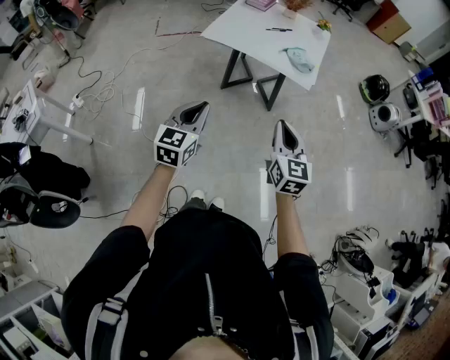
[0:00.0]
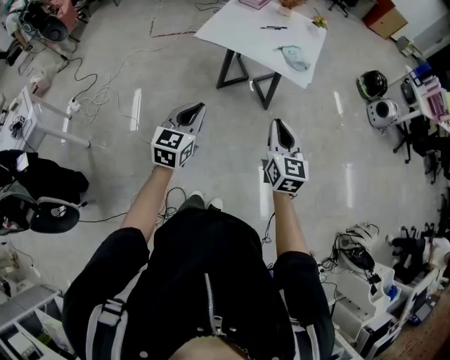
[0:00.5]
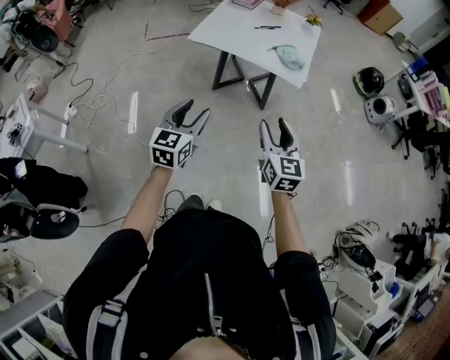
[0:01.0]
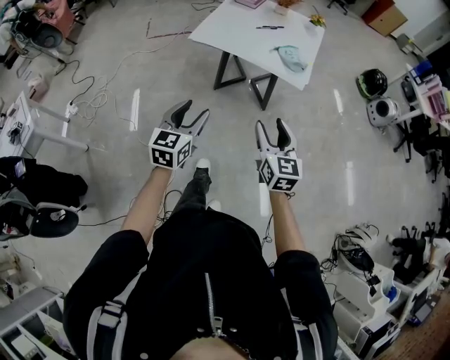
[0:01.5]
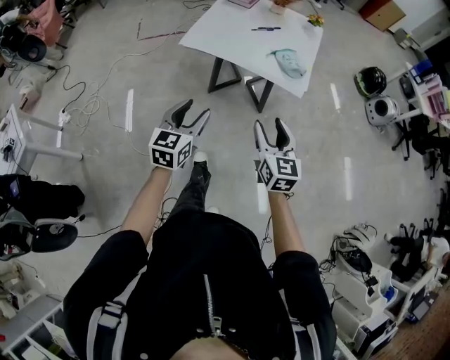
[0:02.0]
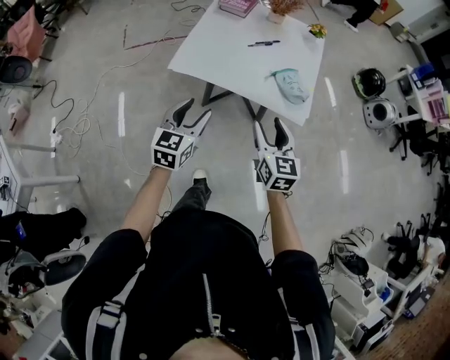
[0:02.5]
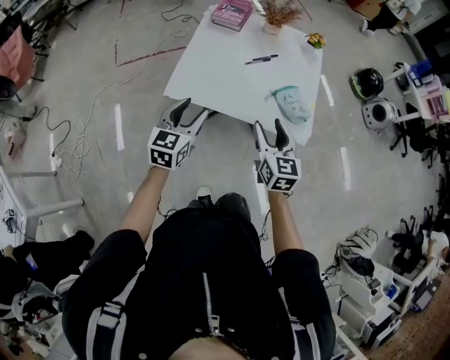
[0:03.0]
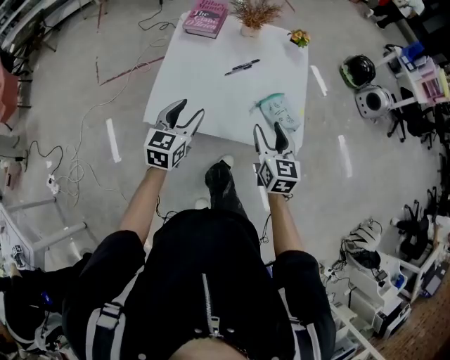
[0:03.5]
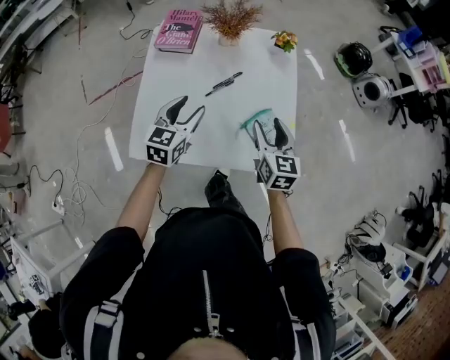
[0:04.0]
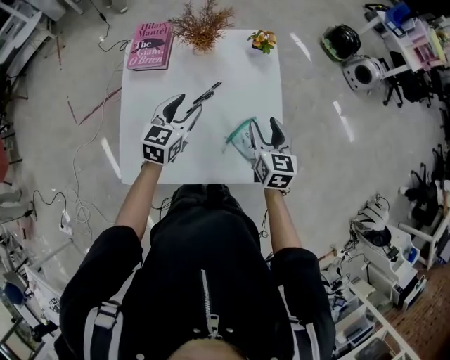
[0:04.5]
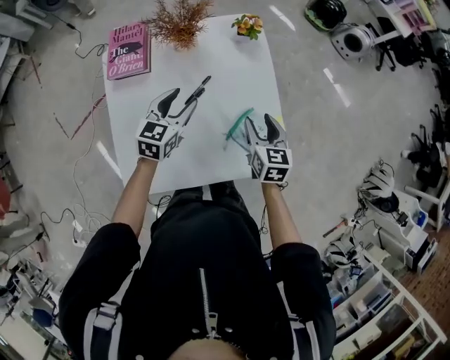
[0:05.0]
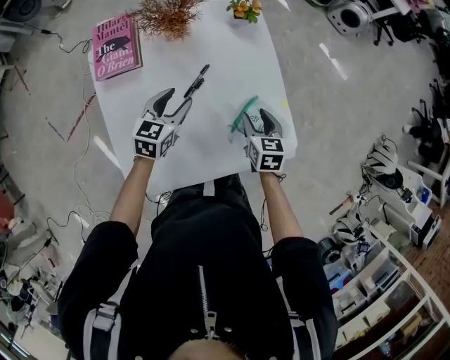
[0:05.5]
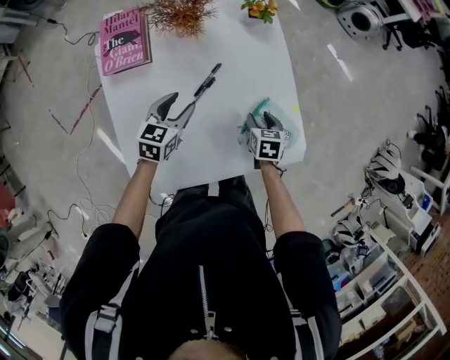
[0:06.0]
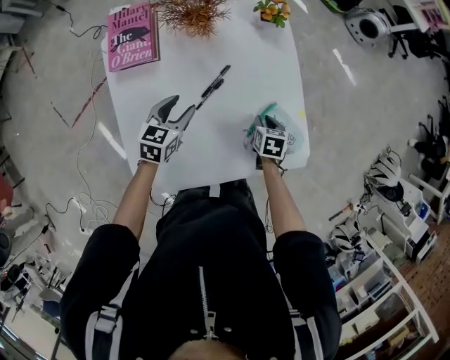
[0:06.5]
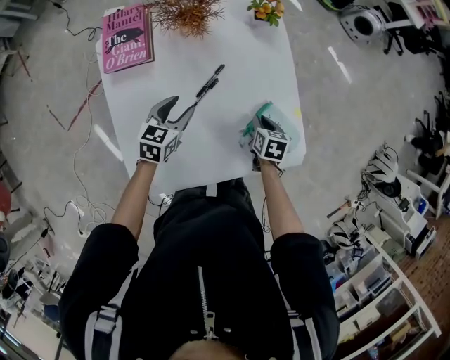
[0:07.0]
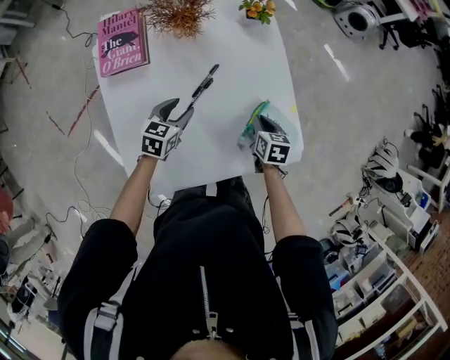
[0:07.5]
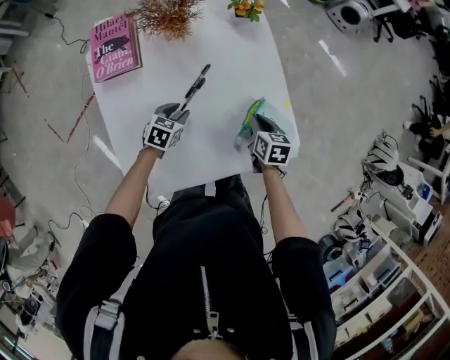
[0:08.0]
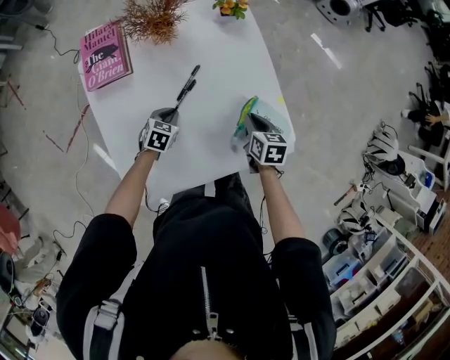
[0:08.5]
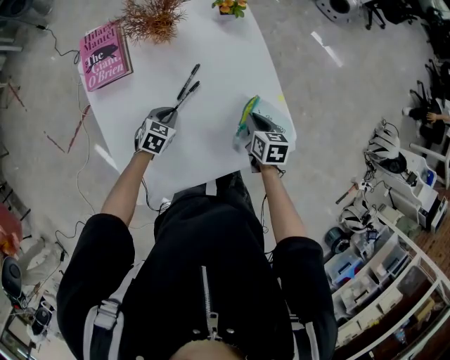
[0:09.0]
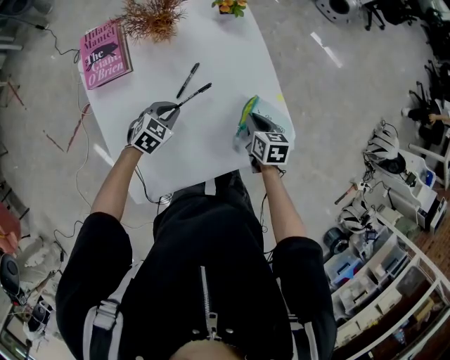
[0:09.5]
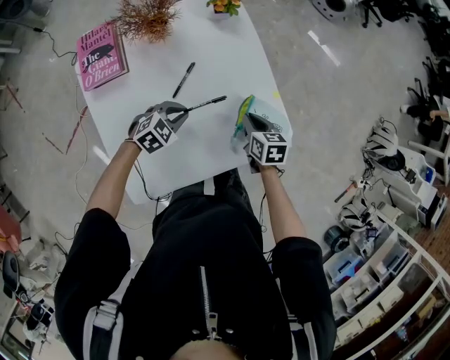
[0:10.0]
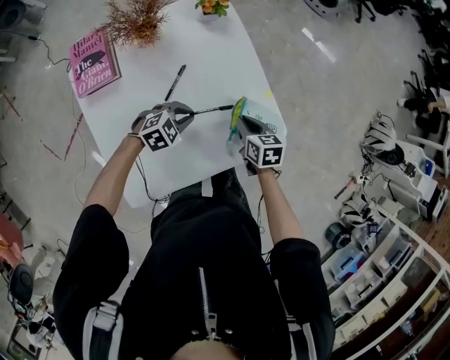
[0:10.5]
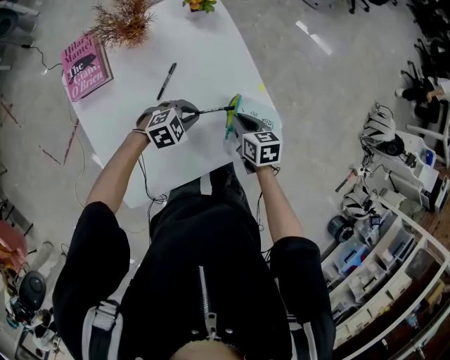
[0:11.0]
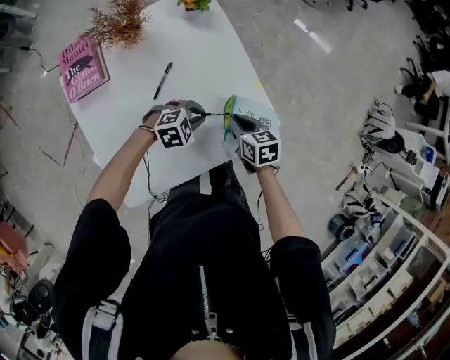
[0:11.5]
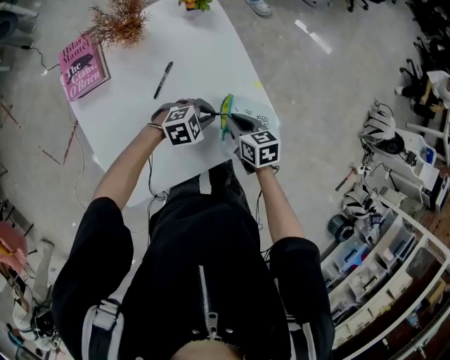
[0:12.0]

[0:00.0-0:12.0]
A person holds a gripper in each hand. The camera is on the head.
0:00.0 to 0:02.0: The grippers both shift forward by about 10 cm. The left gripper opens up, while the right gripper opens its fingers.
0:02.0 to 0:04.0: The pair of grippers is taken forward, about 50 cm. The left gripper rotates about 20 degrees. Meanwhile the right gripper changes its angle by about 20 degrees.
0:04.0 to 0:06.0: The right gripper heads downward, covering about 20 cm, and angles its fingers downward, by about 30 degrees. The left gripper shifts roughly 20 cm forward and downward, and rotates roughly 30 degrees.
0:06.0 to 0:08.0: The right gripper closes; the left gripper goes approximately 10 cm downward, and swivels approximately 20 degrees.
0:08.0 to 0:10.0: The left gripper travels to the right and upward by roughly 10 cm, rotates approximately 40 degrees, and closes.
0:10.0 to 0:12.0: The left gripper travels to the right by approximately 15 cm, and changes its angle by some 20 degrees.

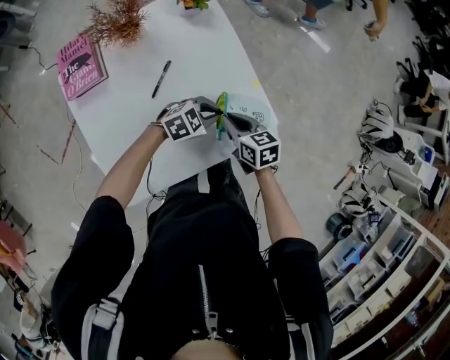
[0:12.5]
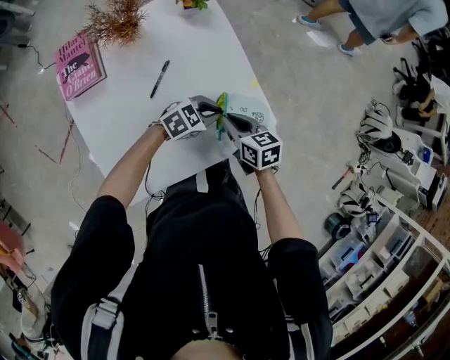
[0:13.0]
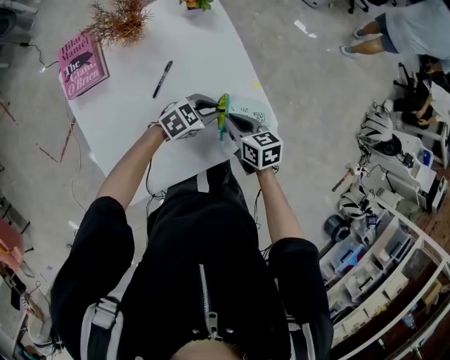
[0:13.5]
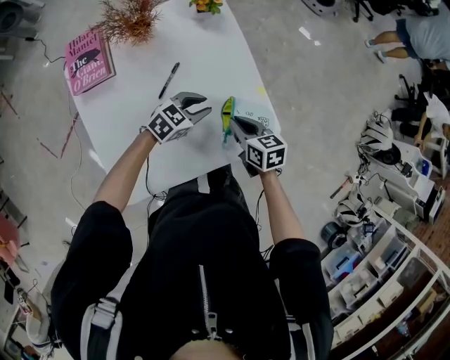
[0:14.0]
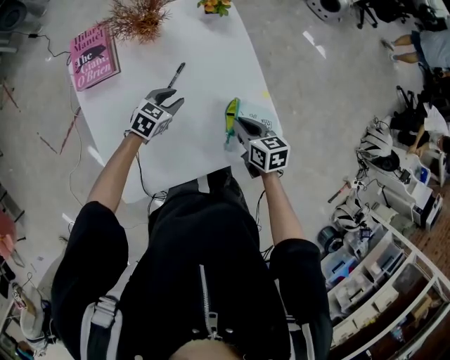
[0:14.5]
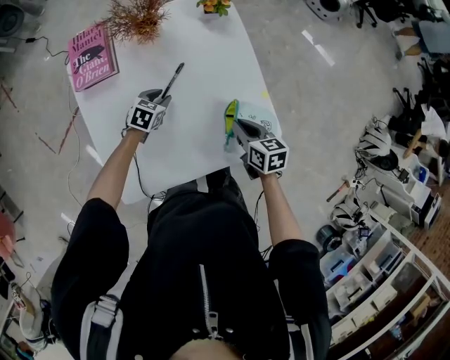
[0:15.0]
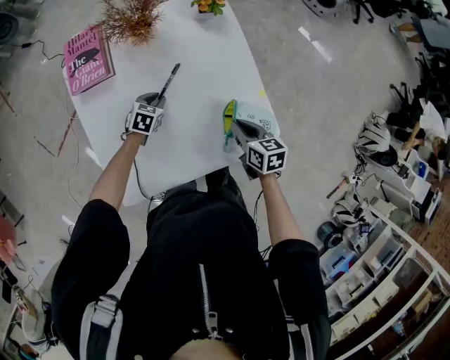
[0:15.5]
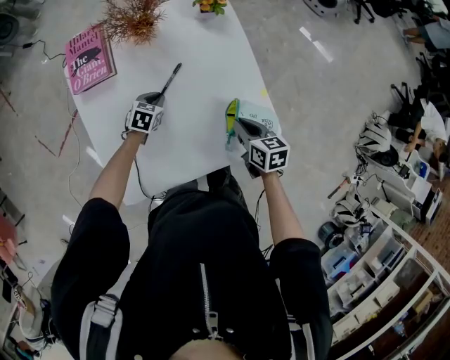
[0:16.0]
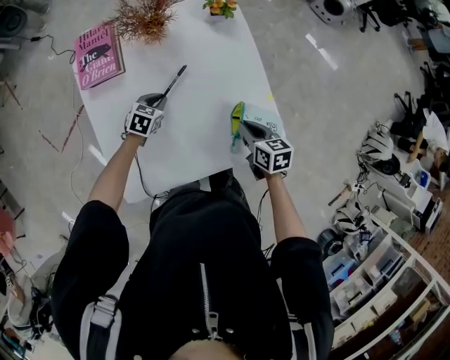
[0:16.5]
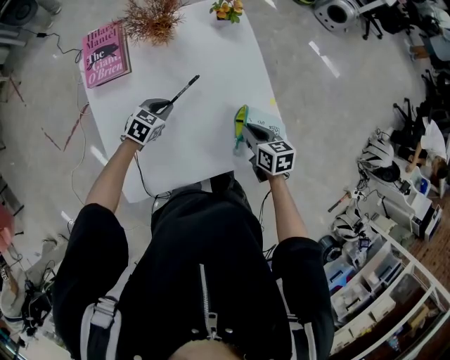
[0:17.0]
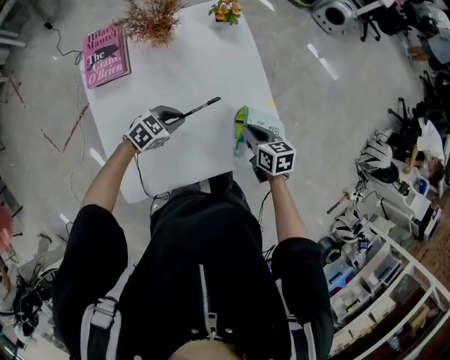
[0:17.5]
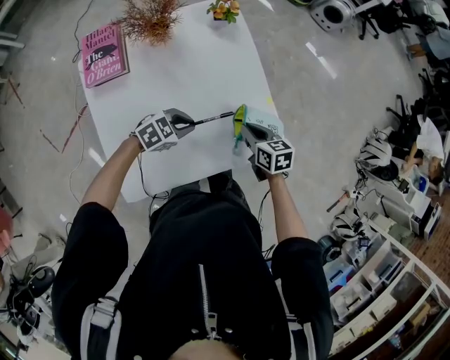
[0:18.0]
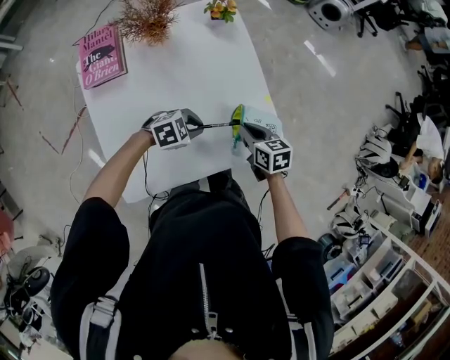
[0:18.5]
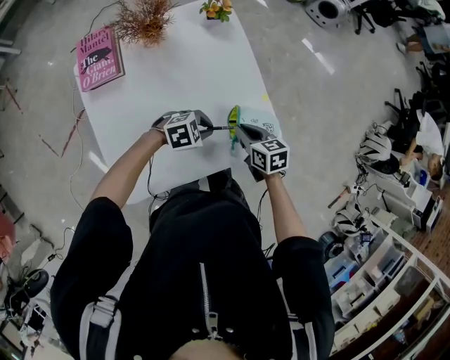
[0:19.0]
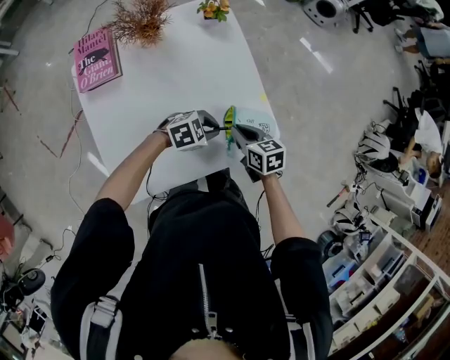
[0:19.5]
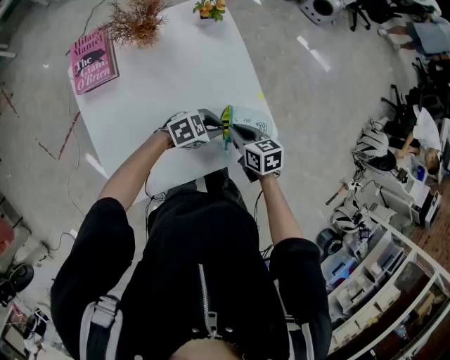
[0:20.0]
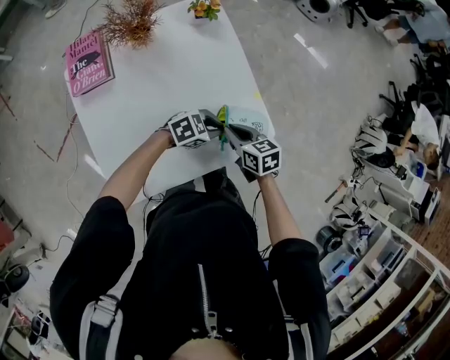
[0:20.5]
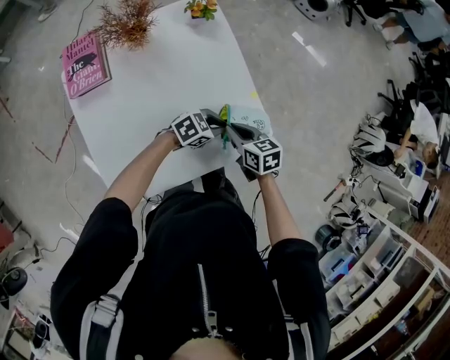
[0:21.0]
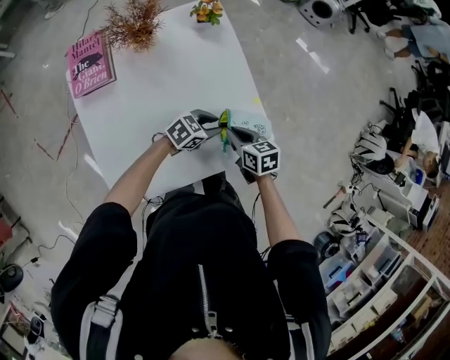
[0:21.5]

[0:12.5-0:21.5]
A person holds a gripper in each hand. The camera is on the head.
0:12.5 to 0:14.5: The left gripper is displaced to the left by about 20 cm, changes its angle by roughly 40 degrees, and opens up.
0:14.5 to 0:17.0: The left gripper goes roughly 5 cm to the left.
0:17.0 to 0:19.5: The left gripper ends up about 20 cm from where it was, and changes its angle by some 40 degrees.
0:19.5 to 0:21.5: The left gripper changes its angle by some 20 degrees.

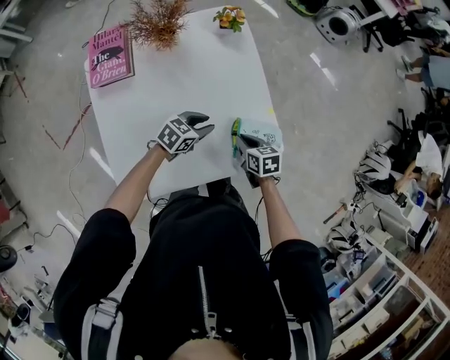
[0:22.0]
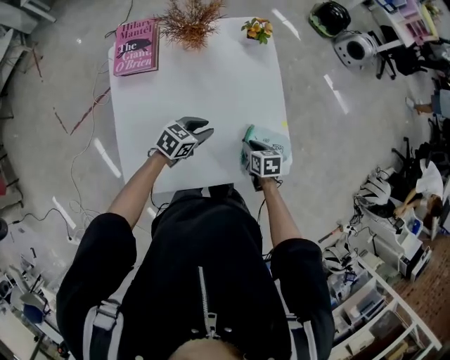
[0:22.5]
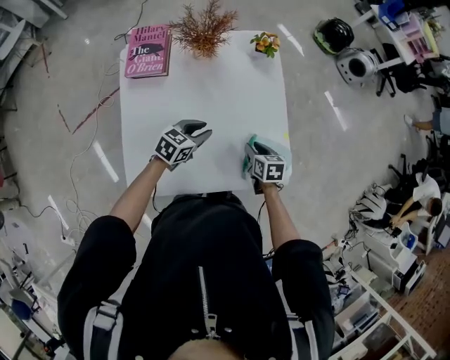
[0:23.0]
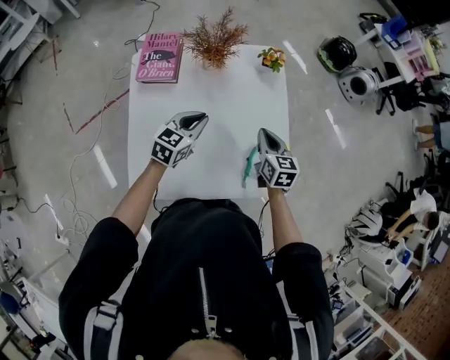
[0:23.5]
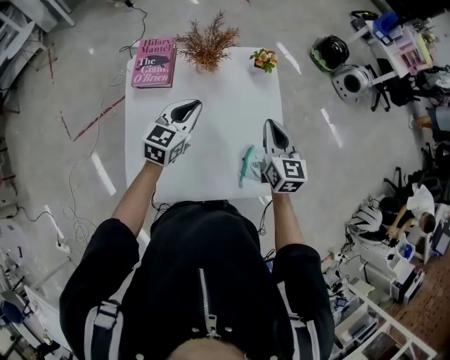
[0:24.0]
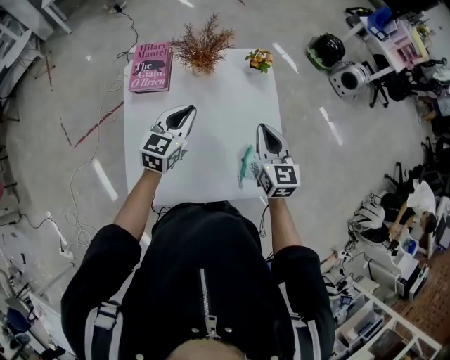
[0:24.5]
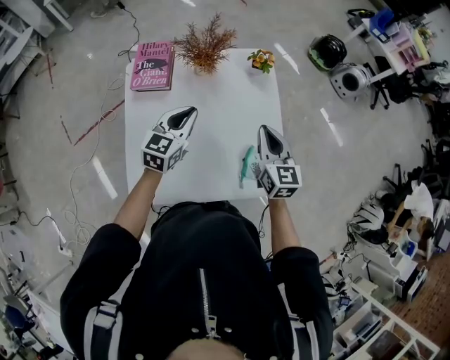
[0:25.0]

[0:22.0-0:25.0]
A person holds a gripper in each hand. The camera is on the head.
0:22.0 to 0:23.5: The right gripper goes roughly 15 cm upward, forward and to the left, turns by roughly 30 degrees, and opens, then closes again. The left gripper heads to the left and upward, covering approximately 20 cm, and turns by about 40 degrees.
0:23.5 to 0:25.0: Both grippers move upward, approximately 10 cm.

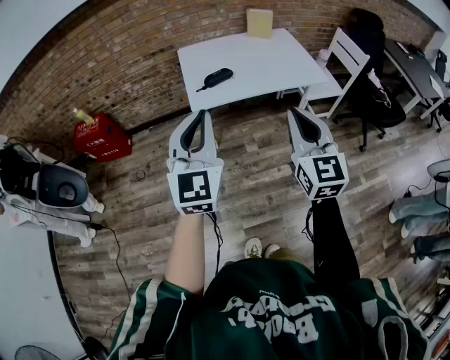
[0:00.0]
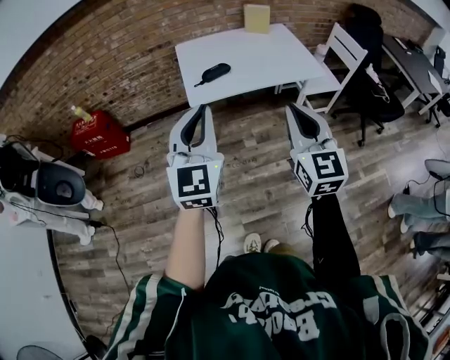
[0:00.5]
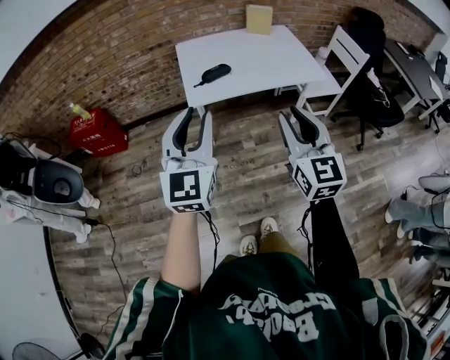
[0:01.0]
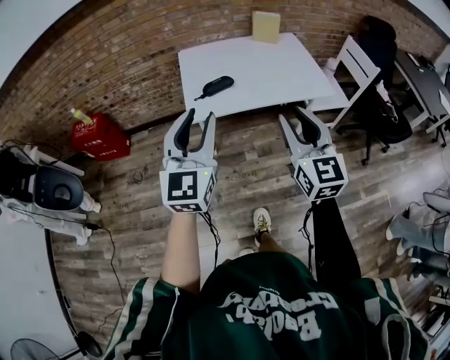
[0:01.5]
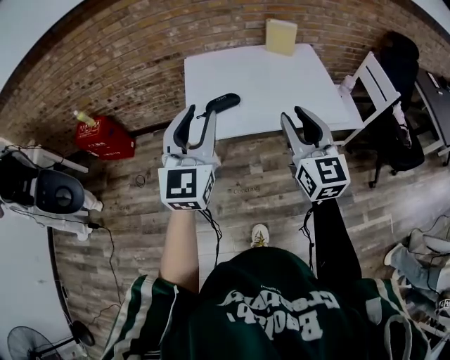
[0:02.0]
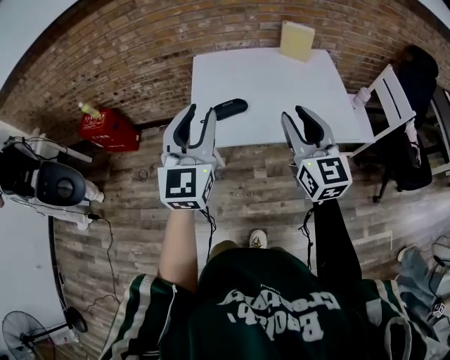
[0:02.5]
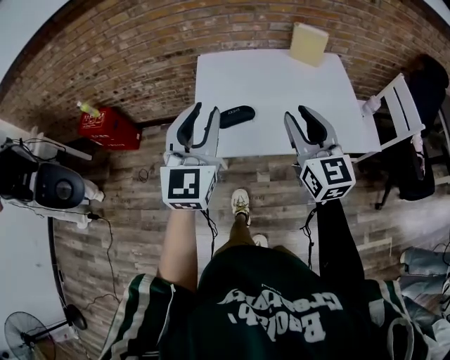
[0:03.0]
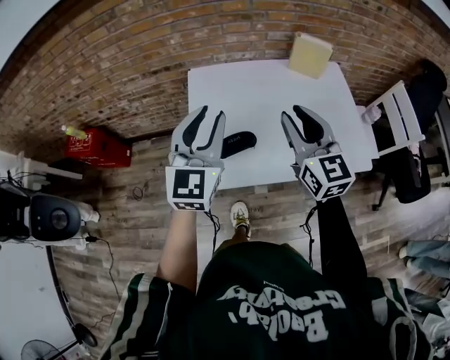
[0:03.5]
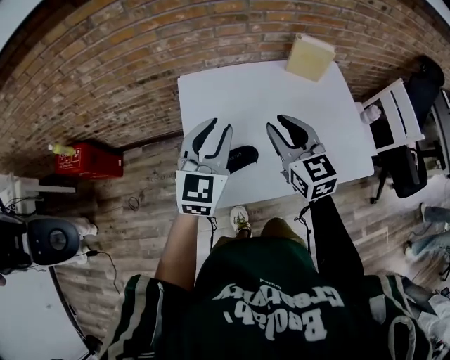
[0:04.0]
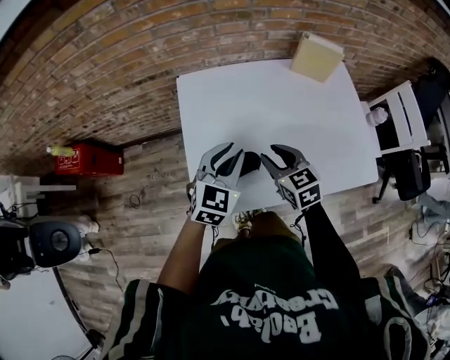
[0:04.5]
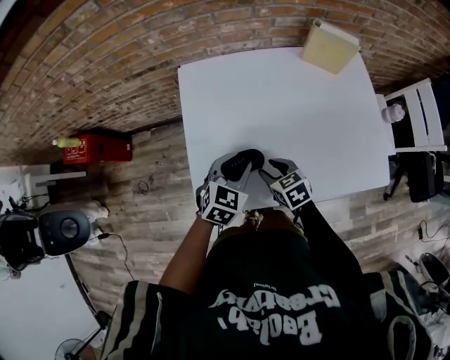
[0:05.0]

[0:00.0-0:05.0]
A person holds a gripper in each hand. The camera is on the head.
0:00.0 to 0:02.5: Both grippers move forward, about 30 cm. The right gripper opens up. The left gripper opens its fingers.
0:02.5 to 0:05.0: Both grippers move downward and forward, roughly 40 cm. The left gripper tilts its fingers roughly 40 degrees downward. The right gripper points its fingers roughly 50 degrees further downward.
